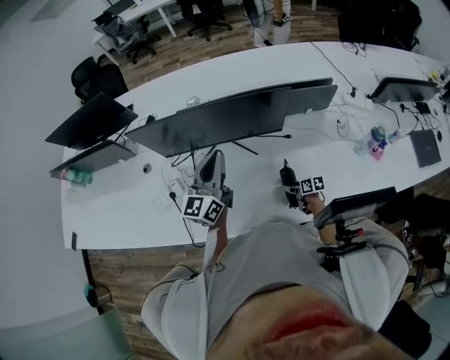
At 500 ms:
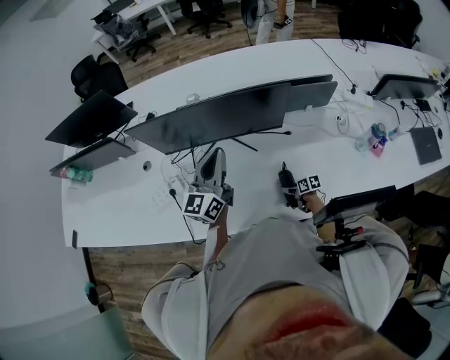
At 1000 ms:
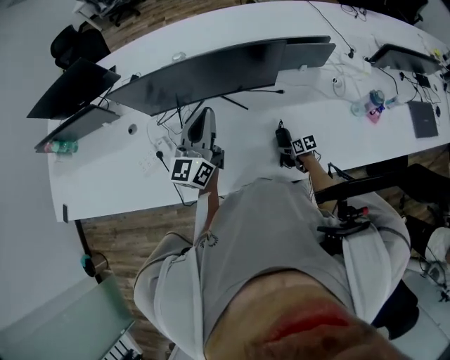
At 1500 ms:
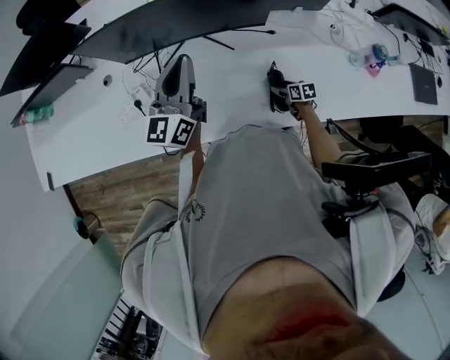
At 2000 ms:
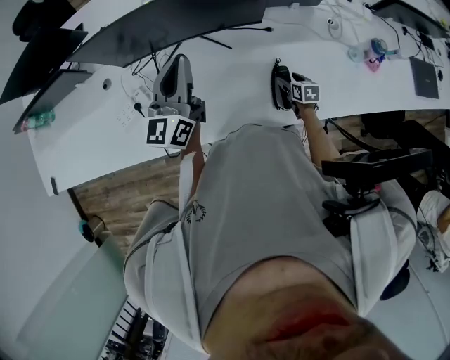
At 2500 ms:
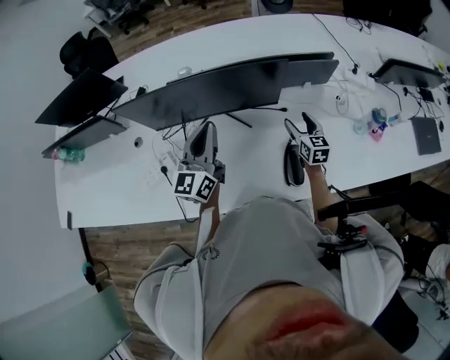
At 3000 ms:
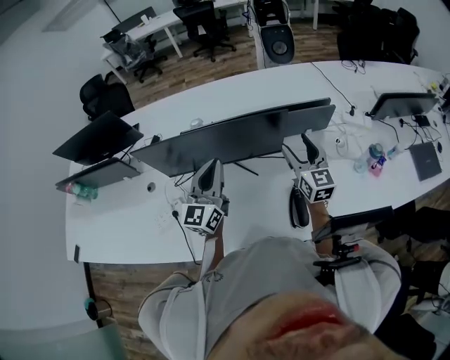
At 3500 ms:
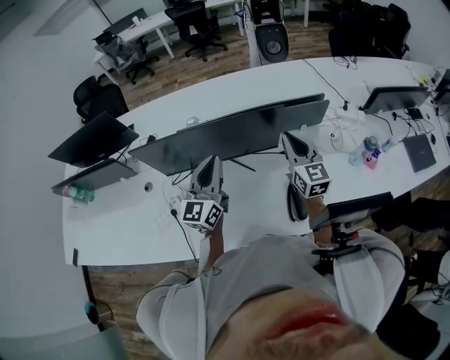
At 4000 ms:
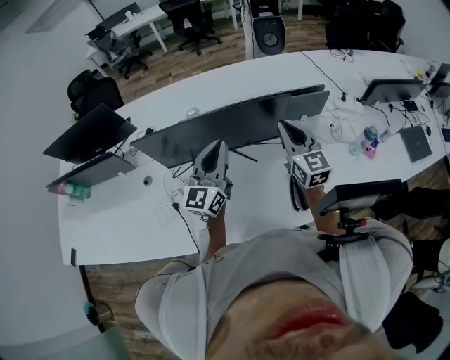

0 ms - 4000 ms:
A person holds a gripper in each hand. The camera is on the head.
0 ms - 2000 ms: The right gripper moves to the right, approximately 10 cm, and rotates approximately 30 degrees.
2000 ms - 4000 ms: The right gripper moves upward, some 40 cm, tilts its fingers some 50 degrees upward, and closes its fingers, while the left gripper shifts roughly 5 cm upward.

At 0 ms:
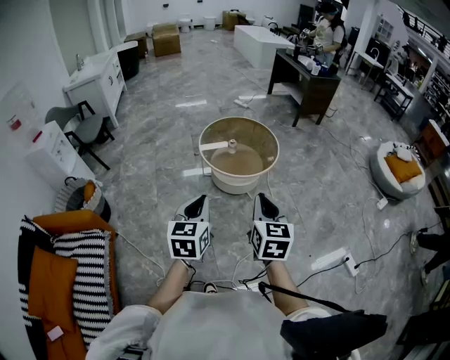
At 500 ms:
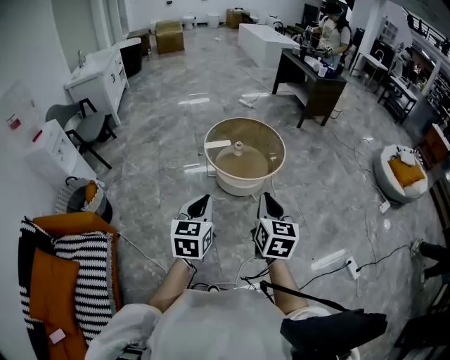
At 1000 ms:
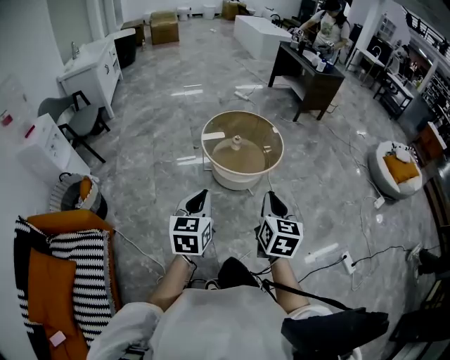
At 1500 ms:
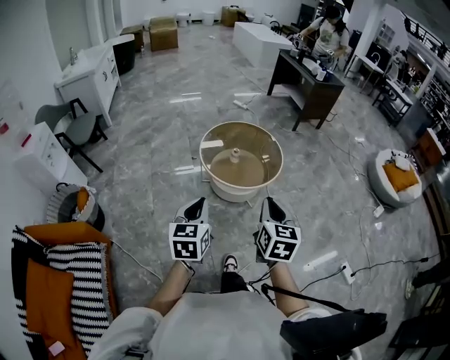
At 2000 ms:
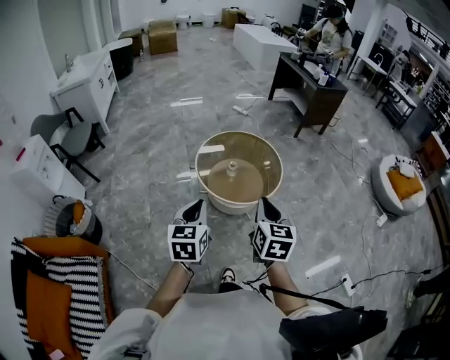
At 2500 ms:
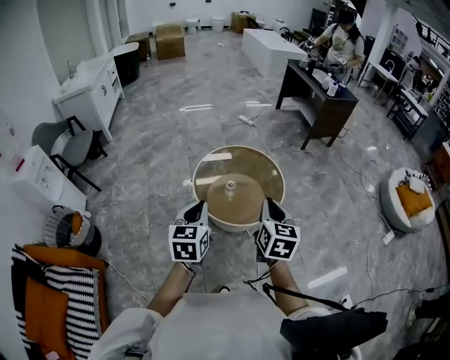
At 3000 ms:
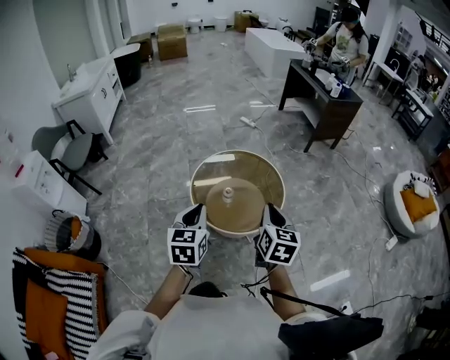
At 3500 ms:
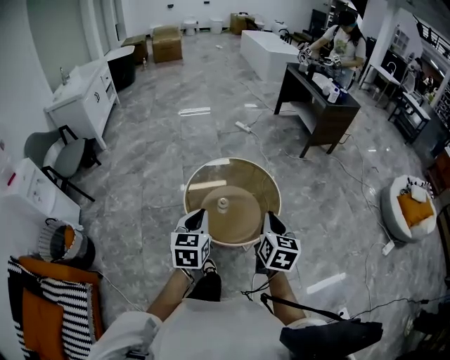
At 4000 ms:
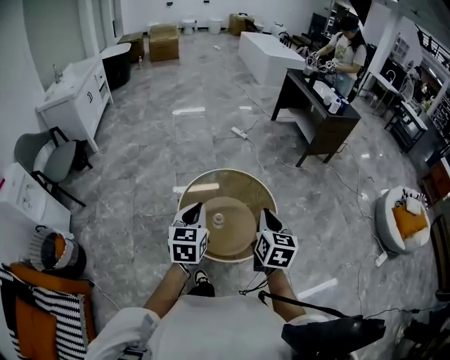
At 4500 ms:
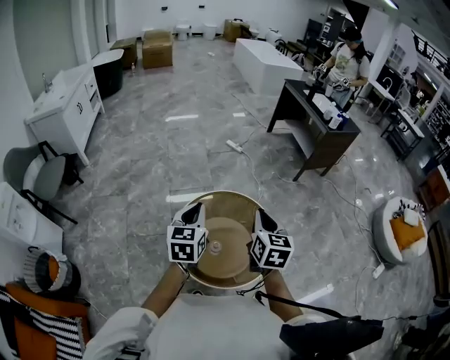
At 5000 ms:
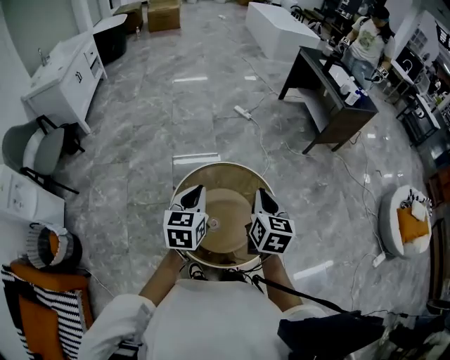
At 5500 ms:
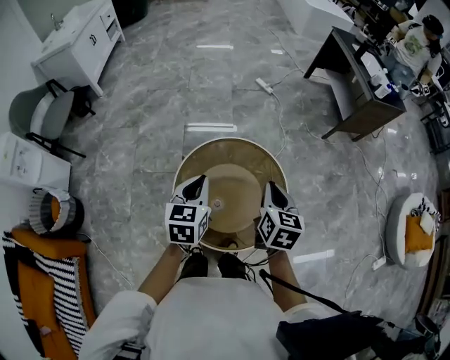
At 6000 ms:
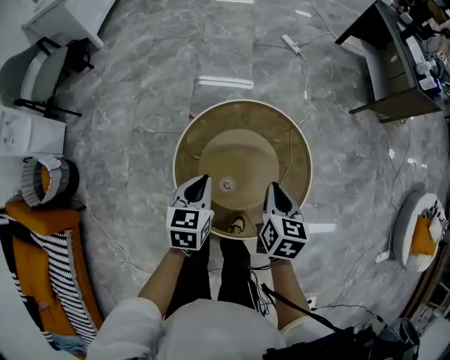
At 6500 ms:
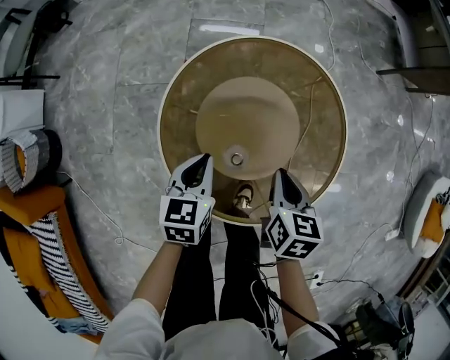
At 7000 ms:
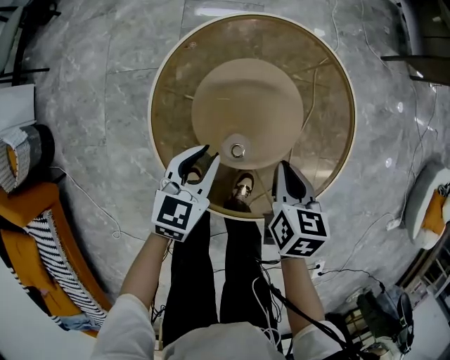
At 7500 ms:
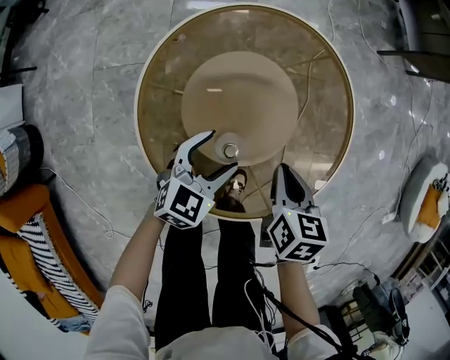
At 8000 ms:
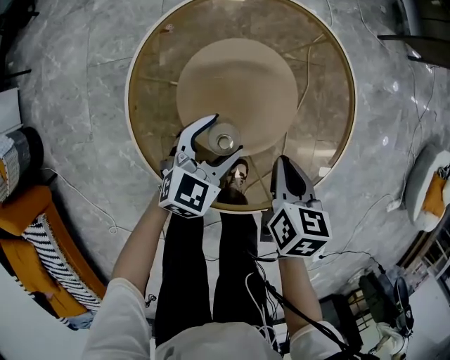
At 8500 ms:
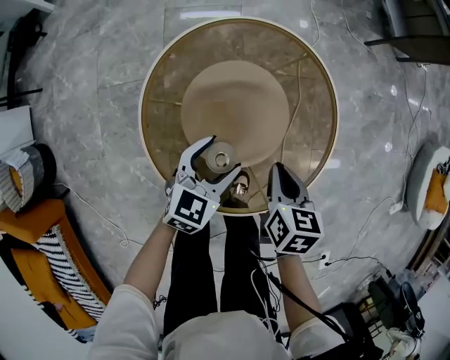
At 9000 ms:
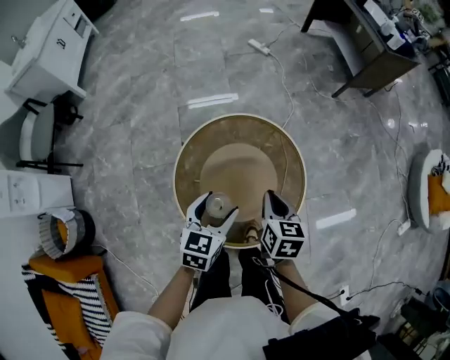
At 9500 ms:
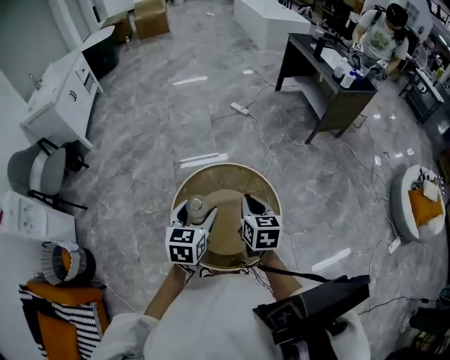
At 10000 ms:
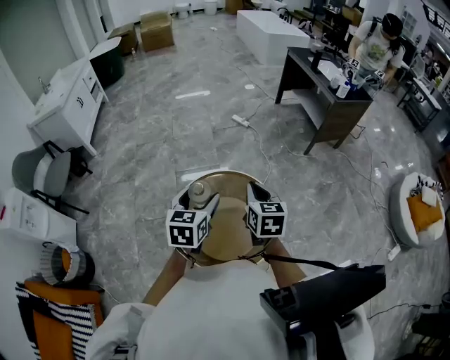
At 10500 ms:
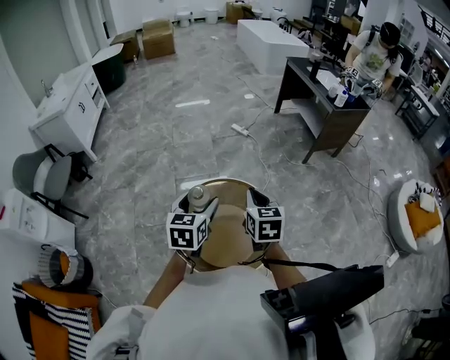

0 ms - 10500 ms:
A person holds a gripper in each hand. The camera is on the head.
0 ms - 2000 ms: Both grippers travel together forward, approximately 20 cm.
2000 ms - 4000 ms: Both grippers travel together forward, roughly 30 cm.
4000 ms - 6500 ms: The left gripper heads downward, covering approximately 40 cm, and changes its angle by about 30 degrees. Meanwhile the right gripper goes roughly 40 cm downward and forward, and changes its angle by about 30 degrees.
6500 ms - 8500 ms: The left gripper moves to the right, approximately 10 cm, changes its angle by roughly 30 degrees, and opens.
8500 ms - 10500 ms: The two grippers go some 40 cm upward. The right gripper rotates approximately 30 degrees. Meanwhile the left gripper rotates some 20 degrees.

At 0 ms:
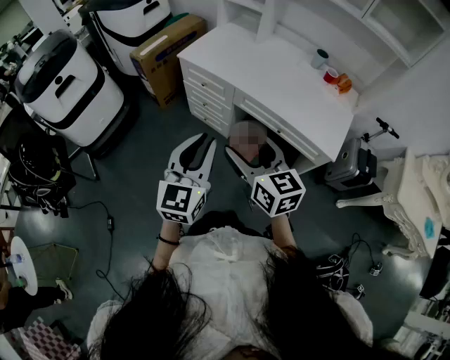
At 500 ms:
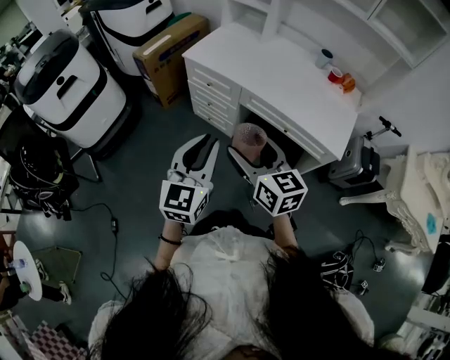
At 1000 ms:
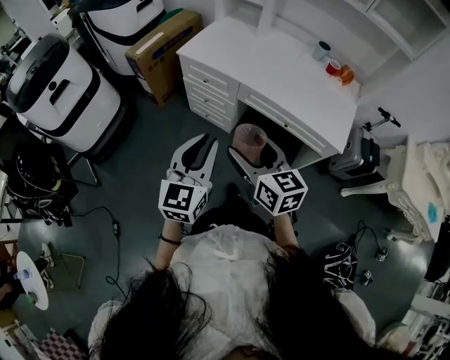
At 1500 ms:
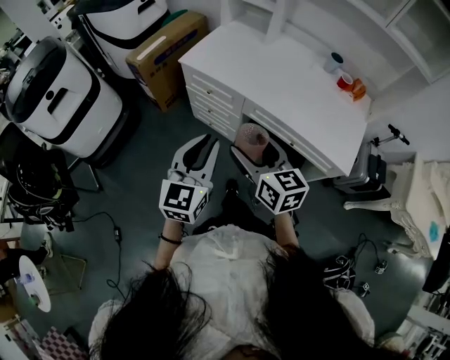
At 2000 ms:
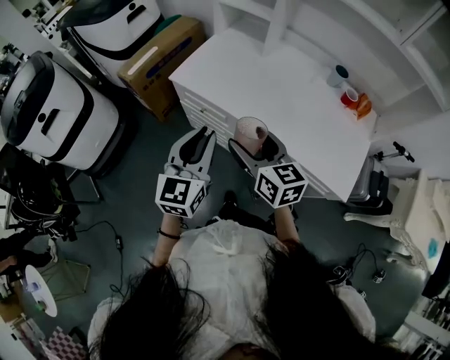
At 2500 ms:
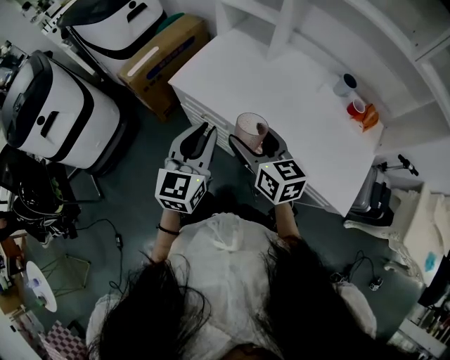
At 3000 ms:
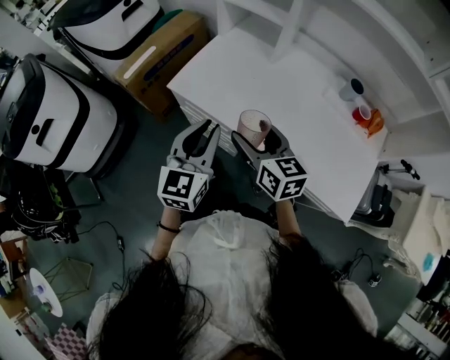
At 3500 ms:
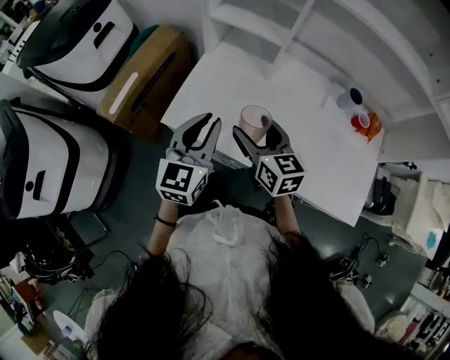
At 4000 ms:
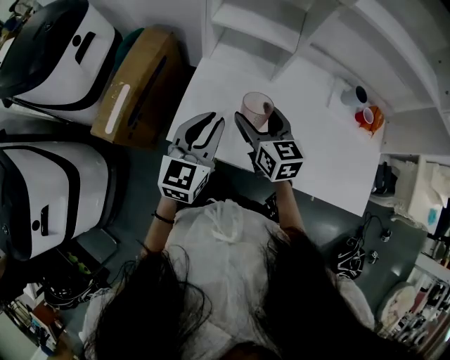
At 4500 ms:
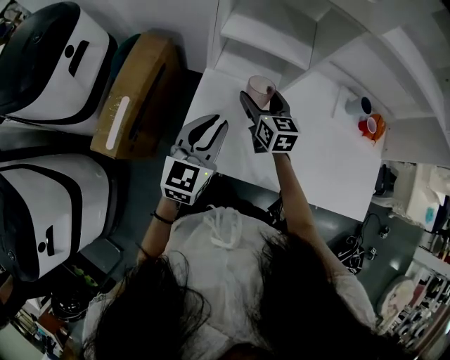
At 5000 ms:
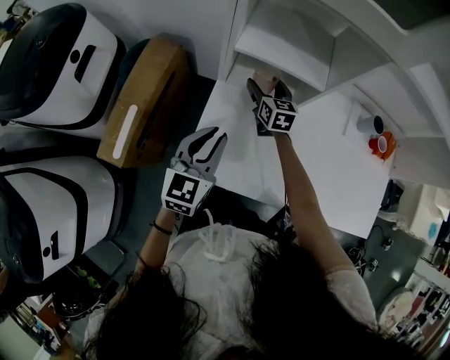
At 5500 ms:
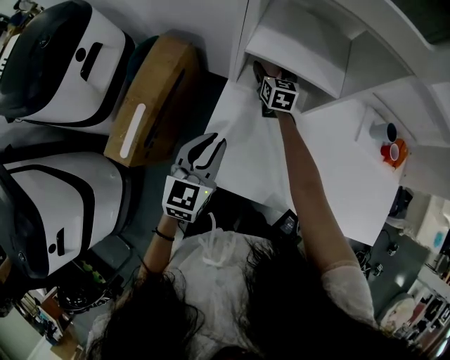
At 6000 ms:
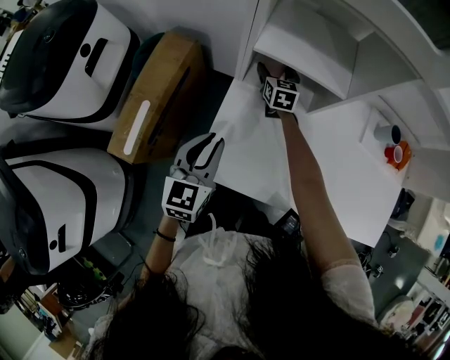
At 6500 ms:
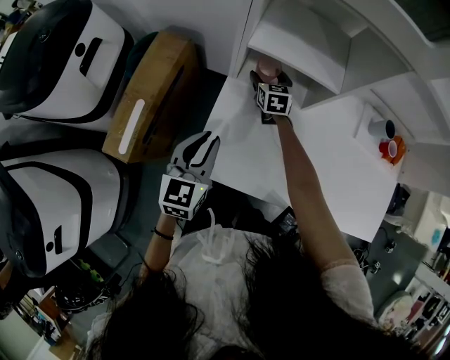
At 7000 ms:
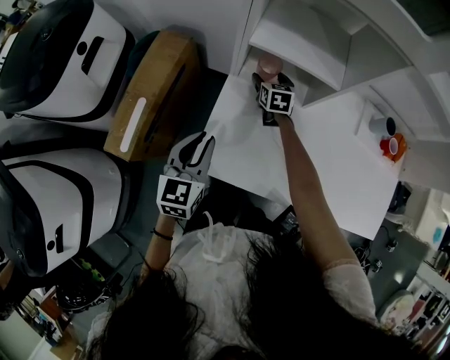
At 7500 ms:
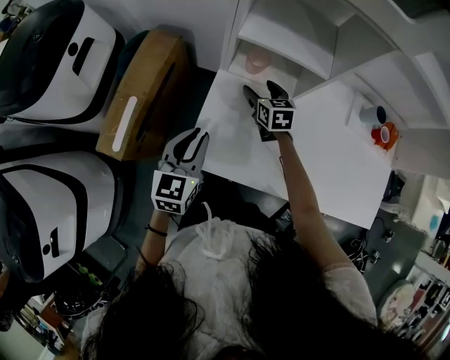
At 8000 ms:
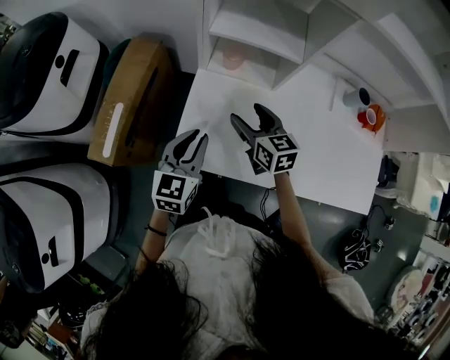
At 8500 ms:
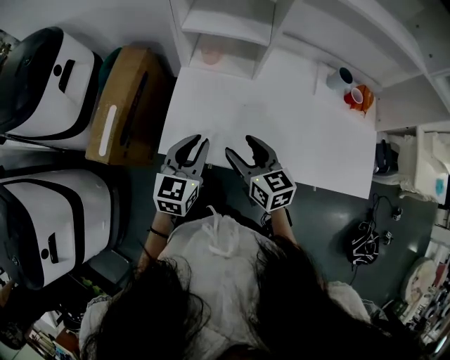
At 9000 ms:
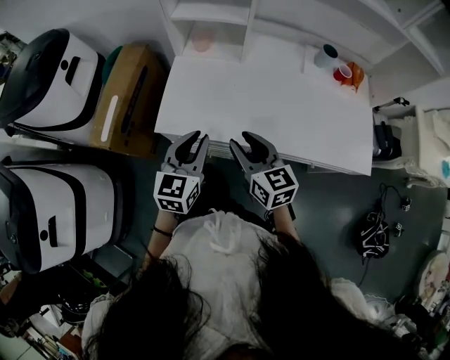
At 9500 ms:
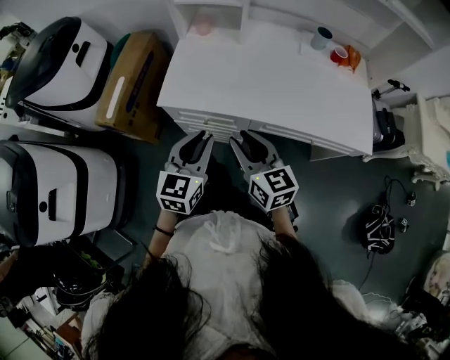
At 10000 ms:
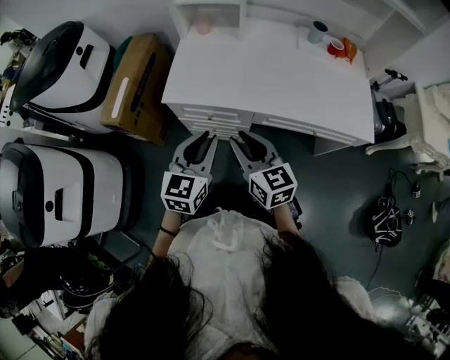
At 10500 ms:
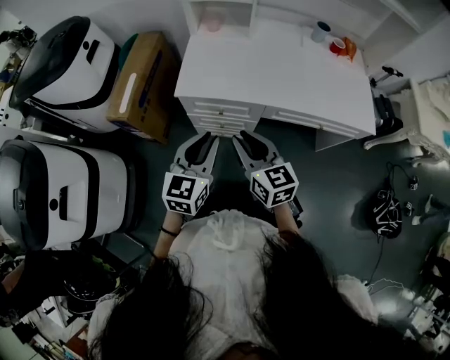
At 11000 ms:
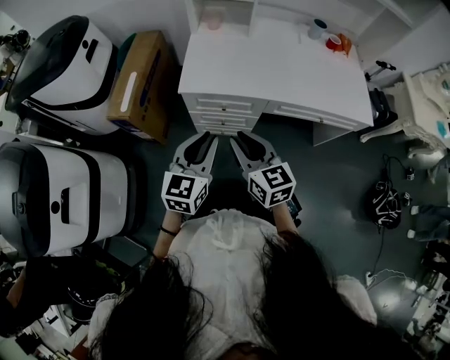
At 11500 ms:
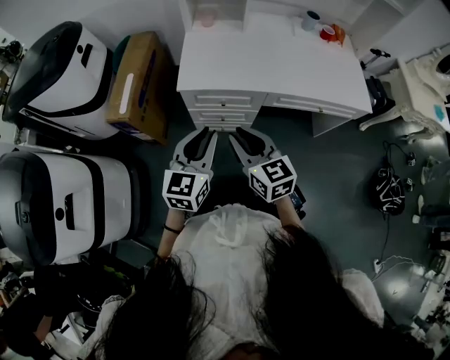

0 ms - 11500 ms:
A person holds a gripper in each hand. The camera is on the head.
0 ms - 2000 ms: Both grippers move forward, some 25 cm.
2000 ms - 4000 ms: The grippers both shift forward by approximately 35 cm. The left gripper turns by roughly 20 degrees. The right gripper changes its angle by roughly 20 degrees.
4000 ms - 6000 ms: The right gripper goes roughly 35 cm forward and downward. The left gripper shifts approximately 15 cm to the left, forward and downward.
6000 ms - 7500 ms: The right gripper shifts approximately 15 cm backward.
7500 ms - 9500 ms: The right gripper travels backward by some 50 cm, swivels some 20 degrees, and closes up, while the left gripper shifts about 35 cm backward and to the right.
9500 ms - 11500 ms: The two grippers go approximately 15 cm to the left and backward.

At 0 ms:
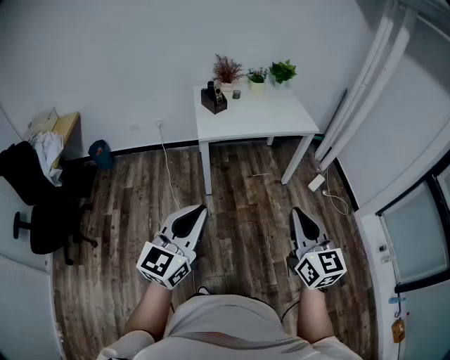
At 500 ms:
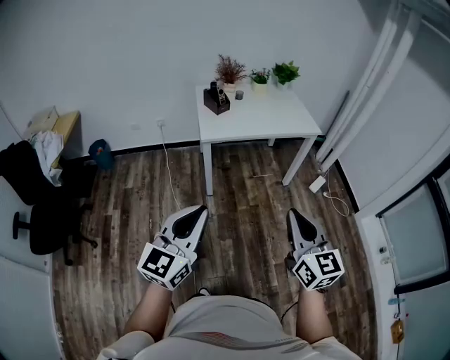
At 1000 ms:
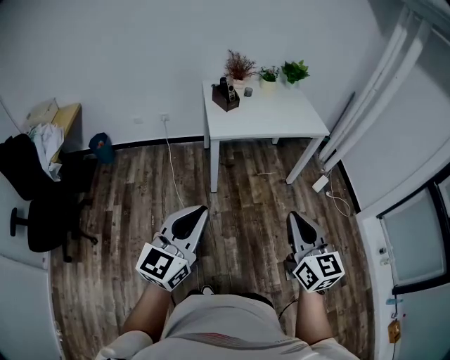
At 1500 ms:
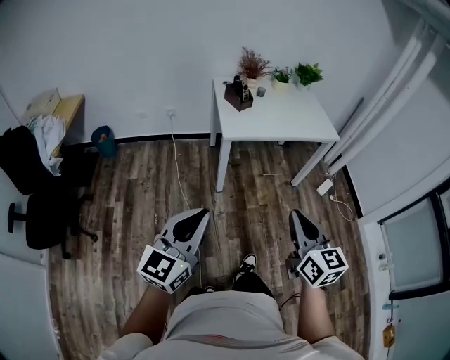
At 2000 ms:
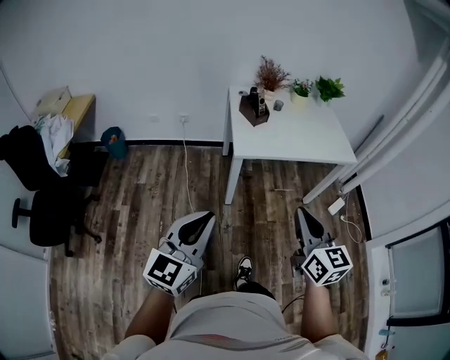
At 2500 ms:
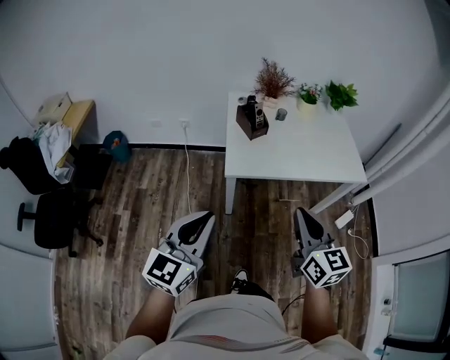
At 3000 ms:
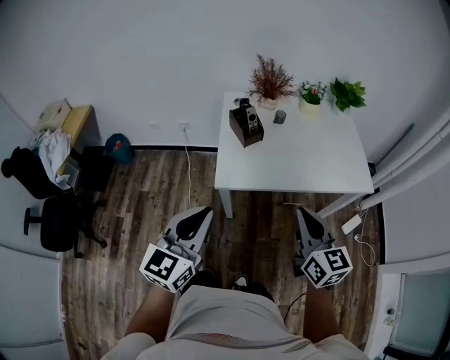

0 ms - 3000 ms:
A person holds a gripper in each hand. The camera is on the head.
0 ms - 1500 ms: Both grippers travel together to the left, some 15 cm.
1500 ms - 3000 ms: The grippers both shift forward by some 35 cm.
